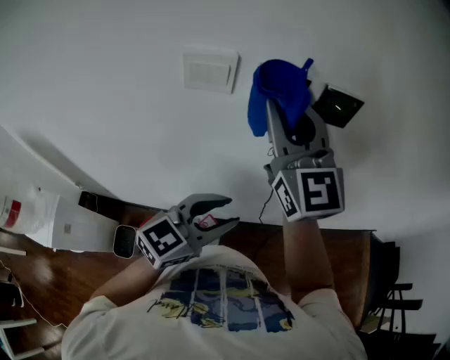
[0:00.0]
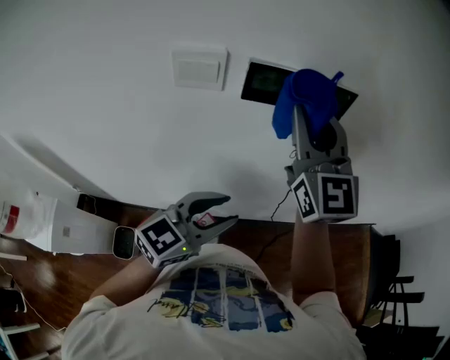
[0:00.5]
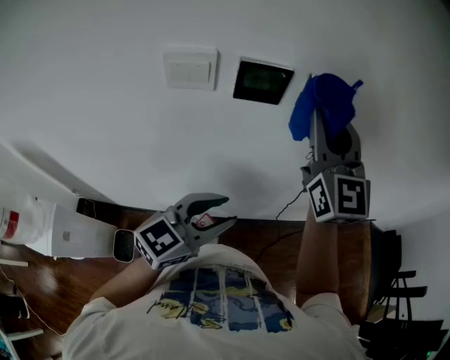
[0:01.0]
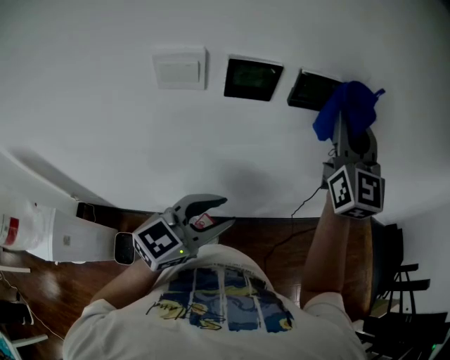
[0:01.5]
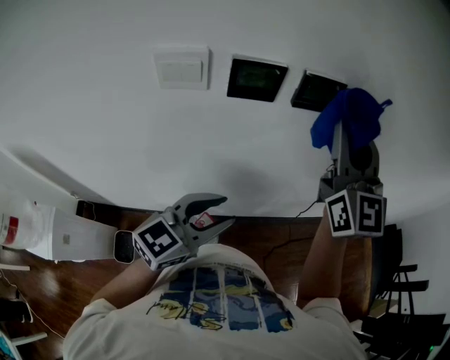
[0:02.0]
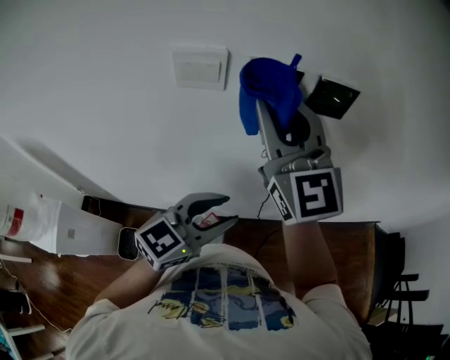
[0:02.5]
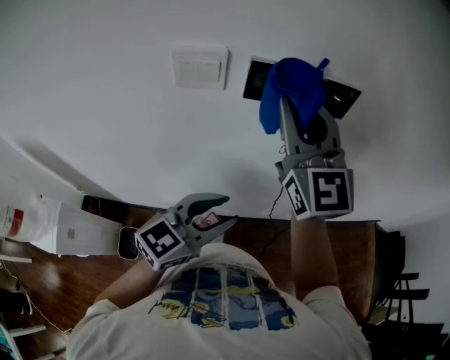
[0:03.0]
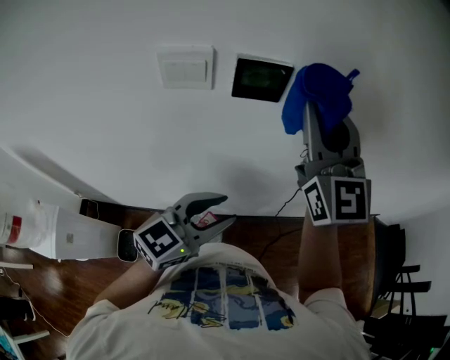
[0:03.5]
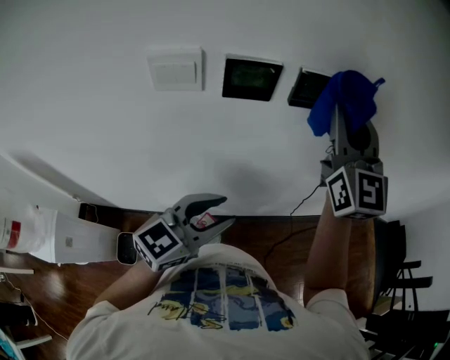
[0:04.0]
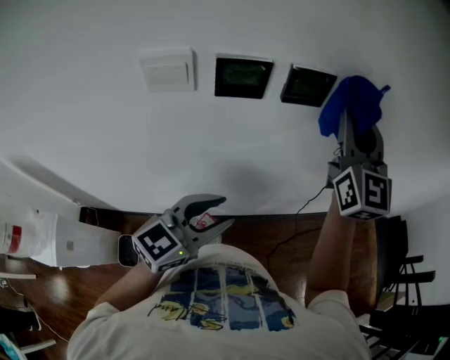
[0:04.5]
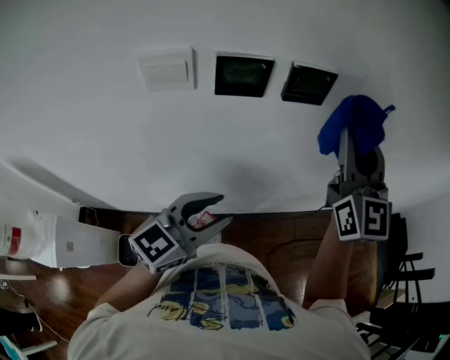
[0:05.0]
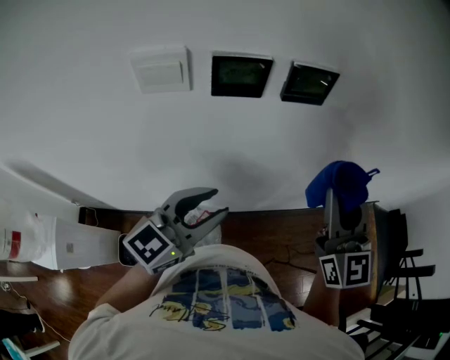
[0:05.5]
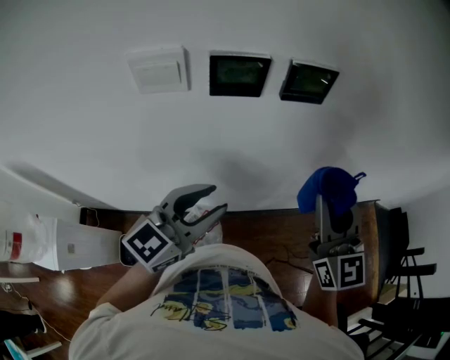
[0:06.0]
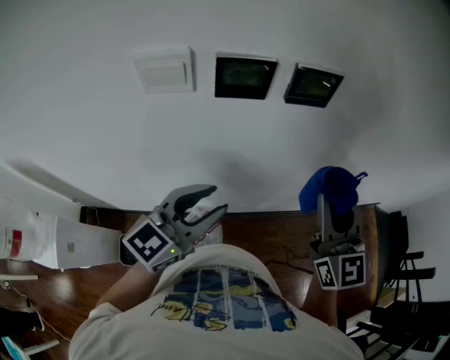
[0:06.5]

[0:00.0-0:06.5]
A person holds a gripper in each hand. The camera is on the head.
0:00.0 to 0:02.0: The right gripper shifts about 15 cm to the right.
0:02.0 to 0:04.5: The right gripper goes to the left and returns, approximately 15 cm each way.
0:04.5 to 0:06.5: The right gripper is displaced backward and downward by roughly 15 cm.

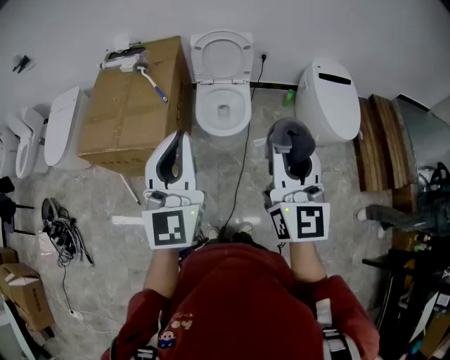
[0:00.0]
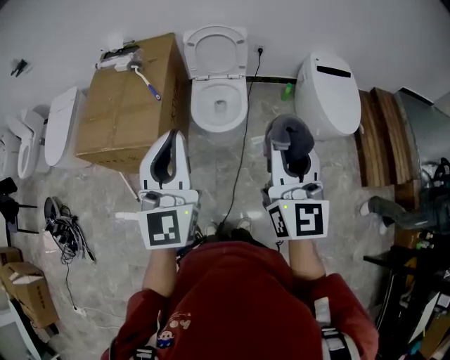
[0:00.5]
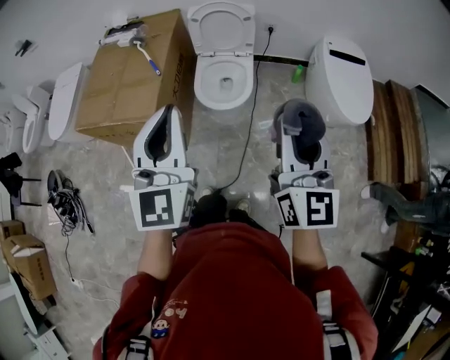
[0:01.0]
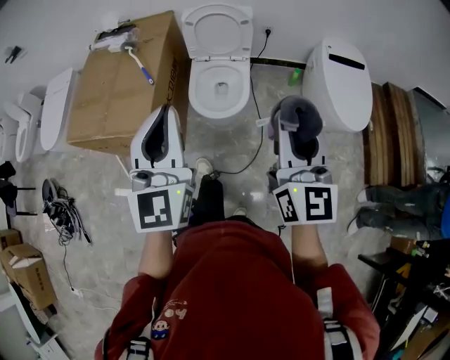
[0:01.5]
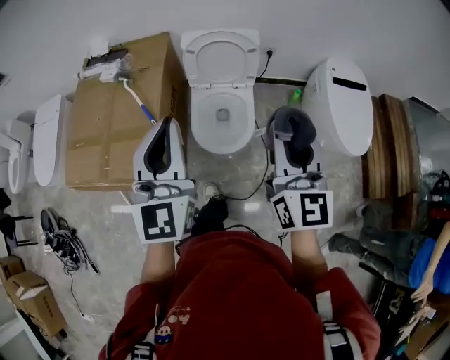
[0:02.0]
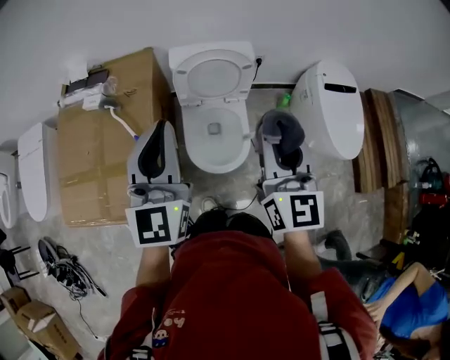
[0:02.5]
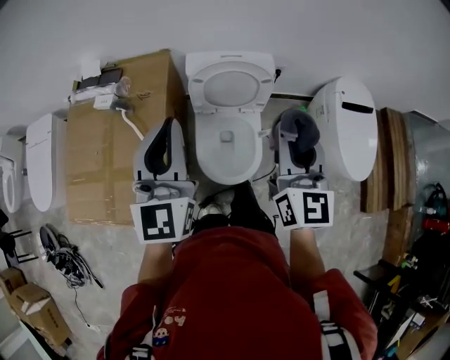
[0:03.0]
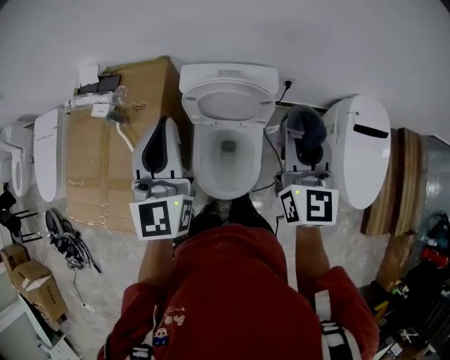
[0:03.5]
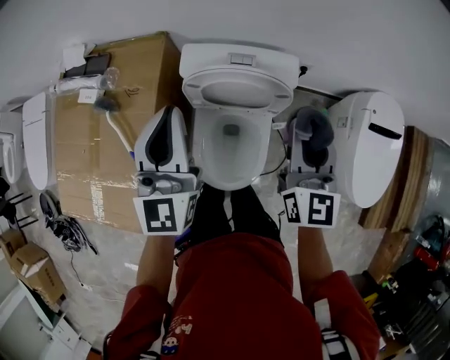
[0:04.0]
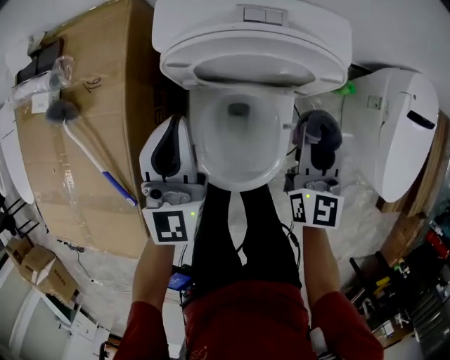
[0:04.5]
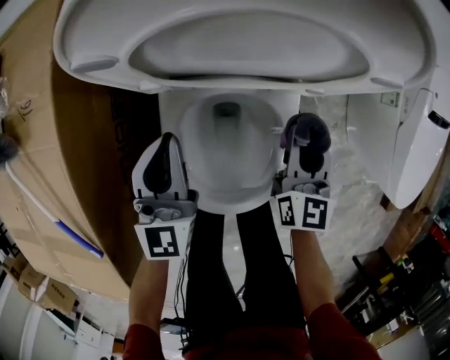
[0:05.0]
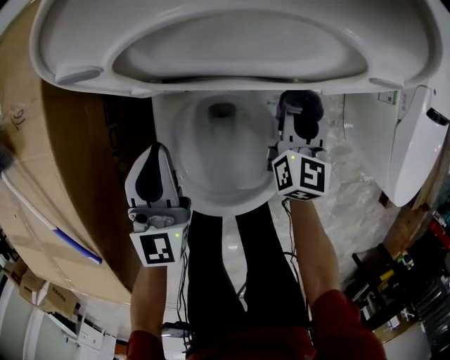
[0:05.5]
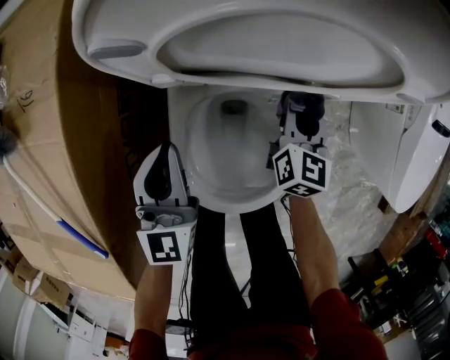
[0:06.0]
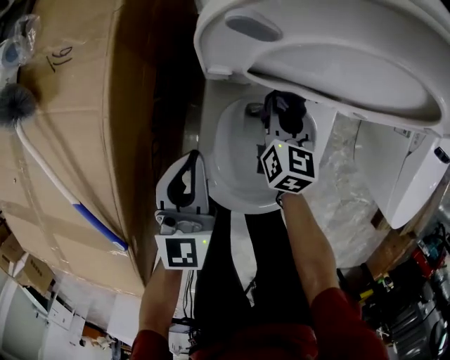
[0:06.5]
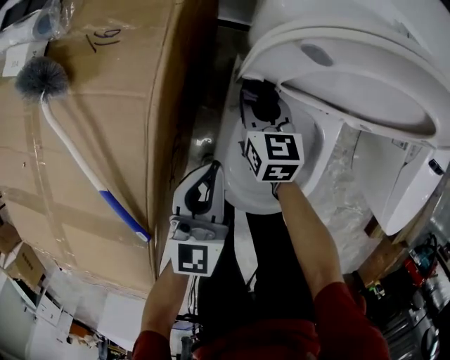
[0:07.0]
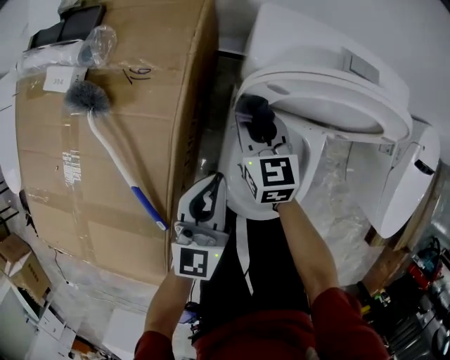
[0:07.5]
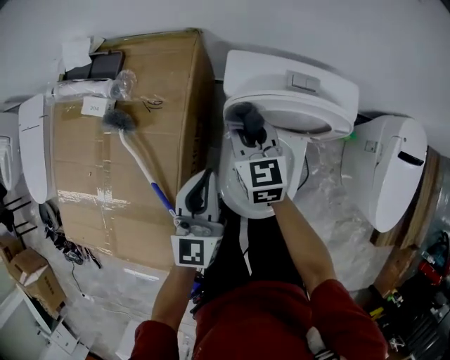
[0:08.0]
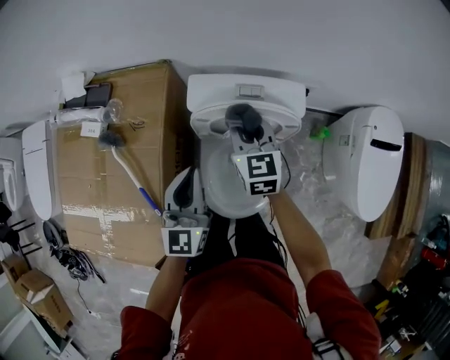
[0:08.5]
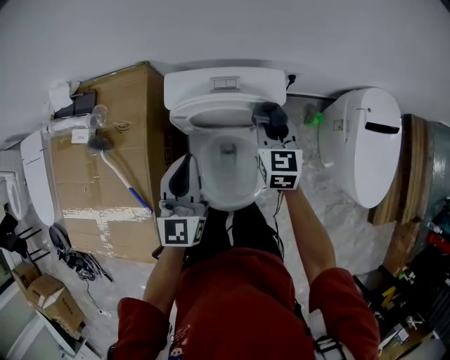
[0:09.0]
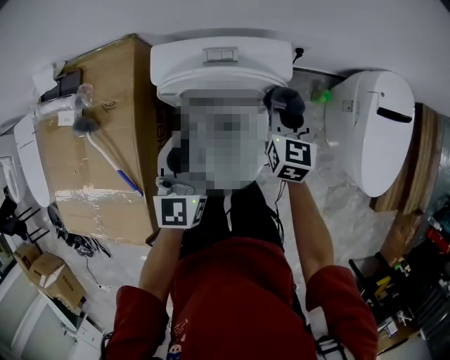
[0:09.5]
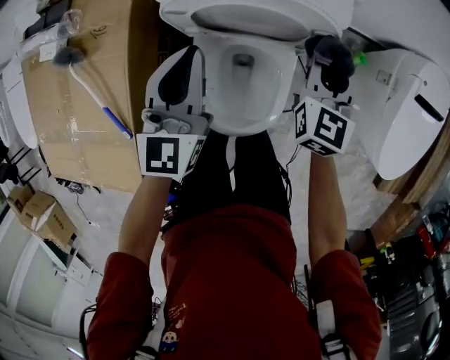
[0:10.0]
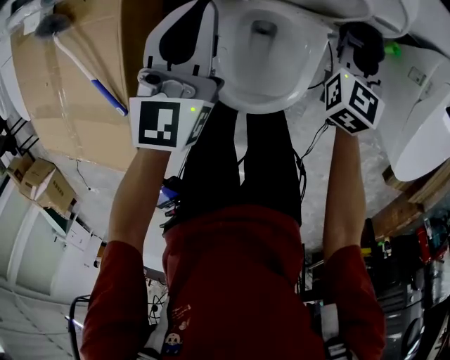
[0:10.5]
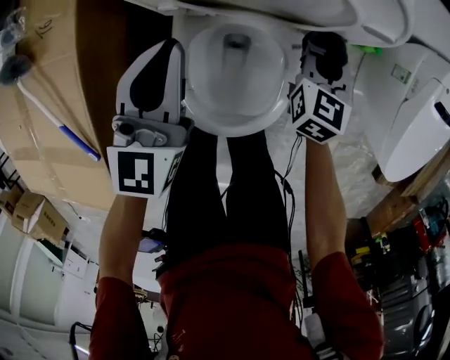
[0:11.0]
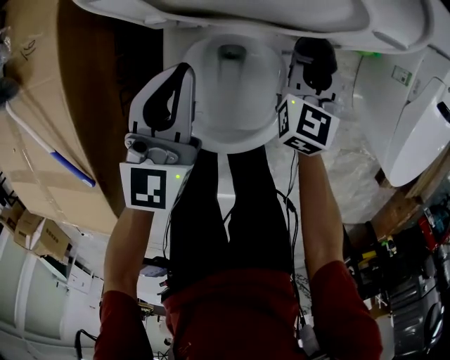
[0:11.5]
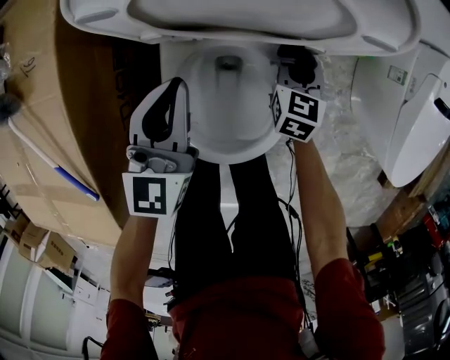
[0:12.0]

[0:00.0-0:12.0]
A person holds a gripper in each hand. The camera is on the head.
0:00.0 to 0:02.0: Both grippers move forward, approximately 25 cm.
0:02.0 to 0:04.0: Both grippers travel together forward, approximately 40 cm.
0:04.0 to 0:06.0: Both grippers travel together downward, some 40 cm. The right gripper turns by some 20 degrees.
0:06.0 to 0:08.0: The left gripper moves upward, approximately 20 cm, while the right gripper shifts some 35 cm upward and to the left, and changes its angle by some 30 degrees.
0:08.0 to 0:10.0: The left gripper is displaced to the right and forward by about 15 cm. Meanwhile the right gripper goes roughly 30 cm to the right, and swivels some 30 degrees.
0:10.0 to 0:12.0: The right gripper shifts some 25 cm downward. The left gripper heads downward, covering about 15 cm.

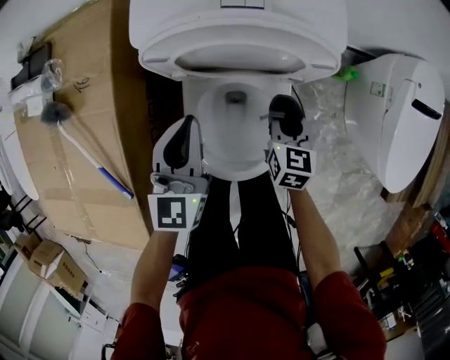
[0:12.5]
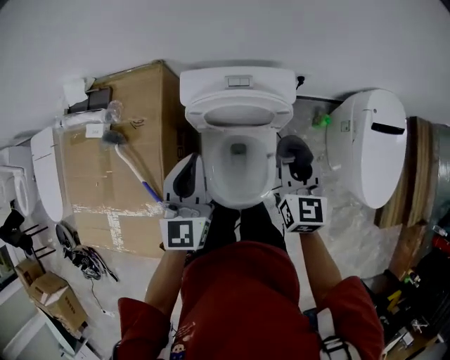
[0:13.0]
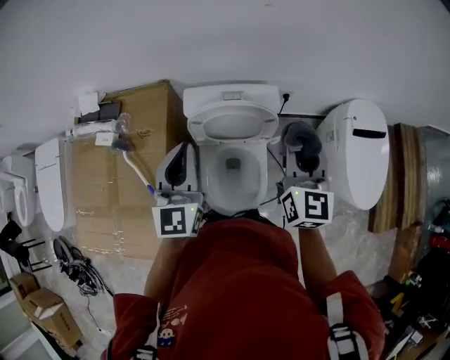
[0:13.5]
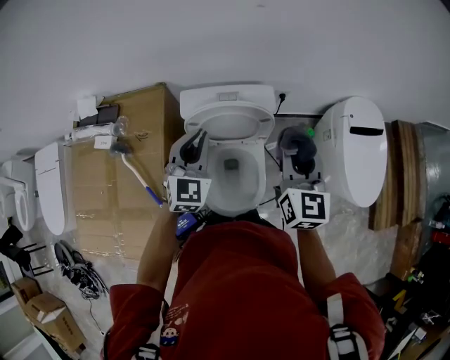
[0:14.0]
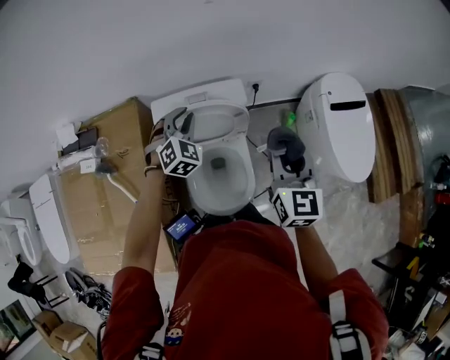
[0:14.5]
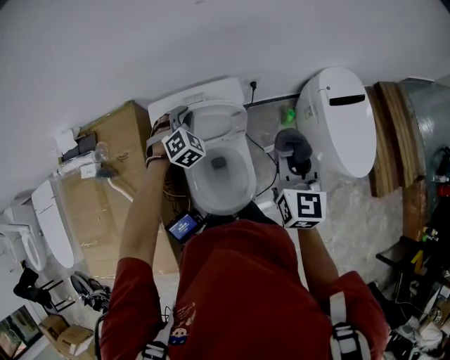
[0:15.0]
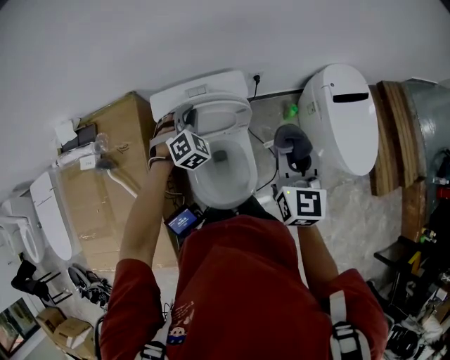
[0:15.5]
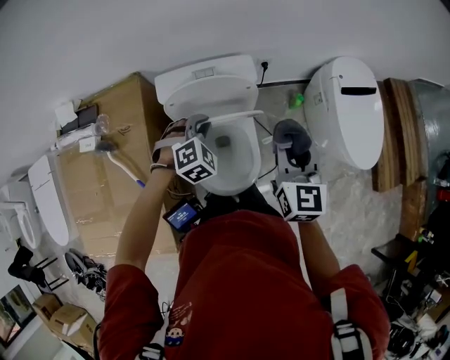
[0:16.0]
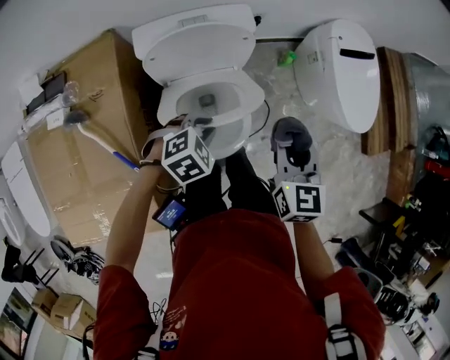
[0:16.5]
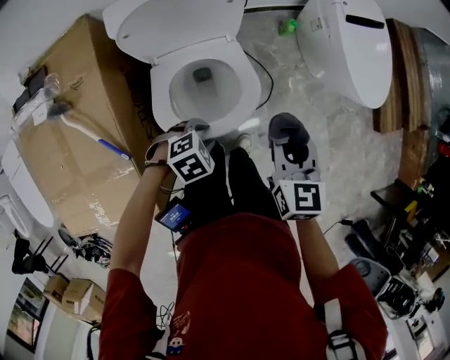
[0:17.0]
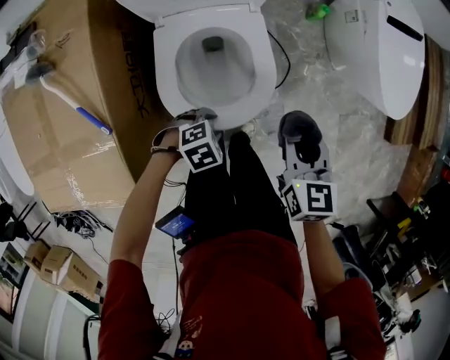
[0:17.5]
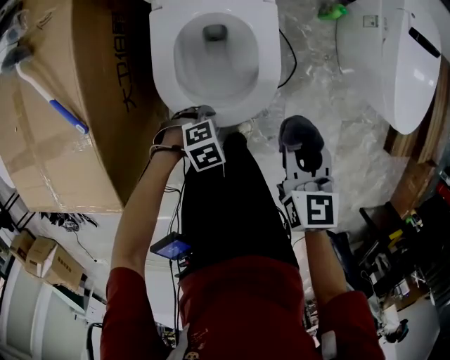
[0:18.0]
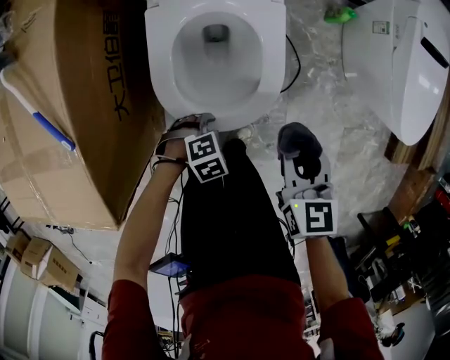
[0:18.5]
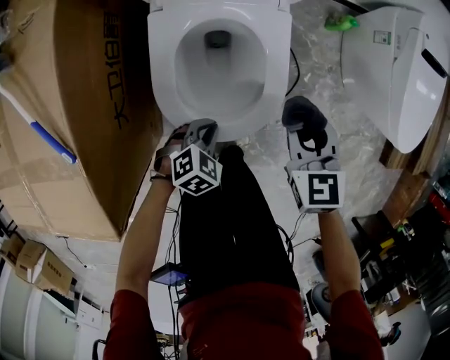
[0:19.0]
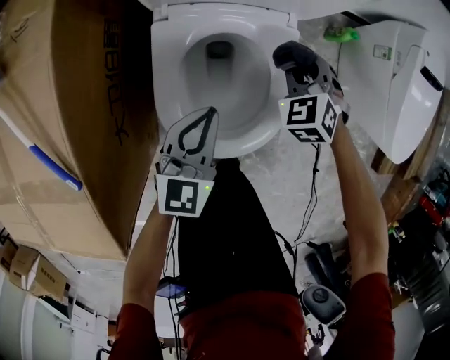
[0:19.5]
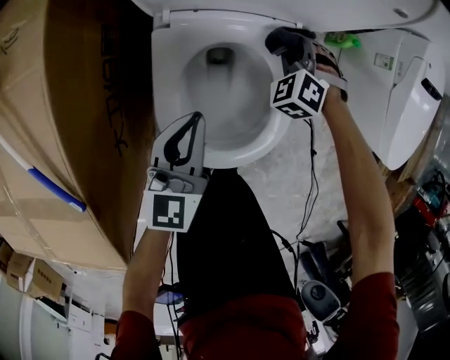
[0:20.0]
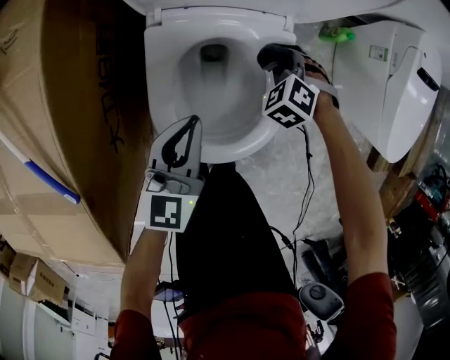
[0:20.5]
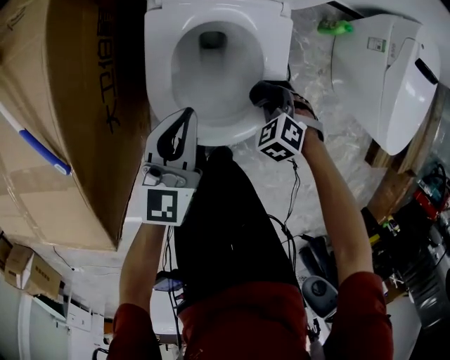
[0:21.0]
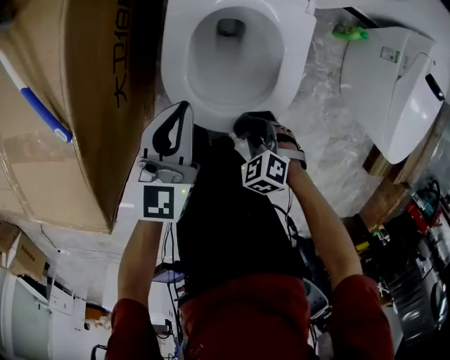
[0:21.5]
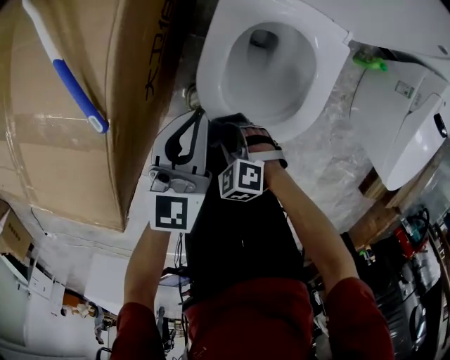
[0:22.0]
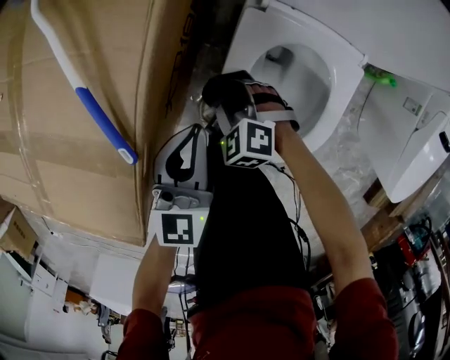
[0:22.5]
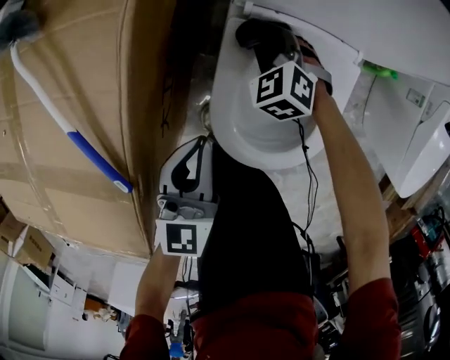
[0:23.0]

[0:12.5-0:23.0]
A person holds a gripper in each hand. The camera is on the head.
0:12.5 to 0:14.5: The right gripper travels upward by about 40 cm, and rotates about 30 degrees. The left gripper heads upward and forward, covering approximately 20 cm, and twists approximately 60 degrees clockwise, seen from behind.
0:14.5 to 0:16.5: The right gripper changes place by some 15 cm. The left gripper moves approximately 25 cm, and turns by roughly 50 degrees.
0:16.5 to 0:19.0: The two grippers go approximately 30 cm downward. The left gripper rotates about 20 degrees, and opens, then closes again. Meanwhile the right gripper swivels roughly 30 degrees.
0:19.0 to 0:21.0: The right gripper shifts roughly 15 cm downward, moves approximately 20 cm forward and comes back, and tilts its fingers some 30 degrees downward, while the left gripper heads upward, forward and to the left, covering about 20 cm, and tilts its fingers approximately 40 degrees upward.
0:21.0 to 0:23.0: The left gripper moves some 10 cm. Meanwhile the right gripper shifts by approximately 30 cm, and swivels approximately 20 degrees.
